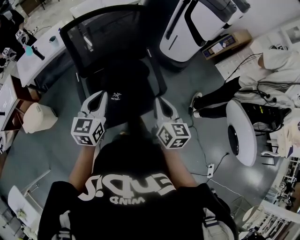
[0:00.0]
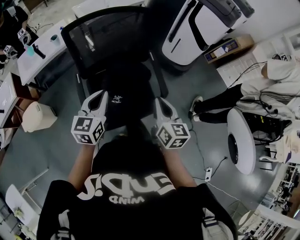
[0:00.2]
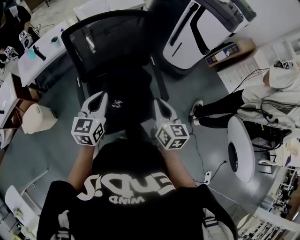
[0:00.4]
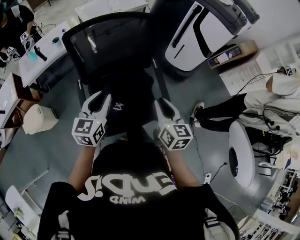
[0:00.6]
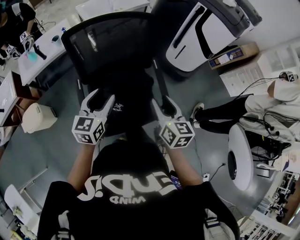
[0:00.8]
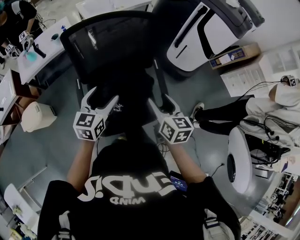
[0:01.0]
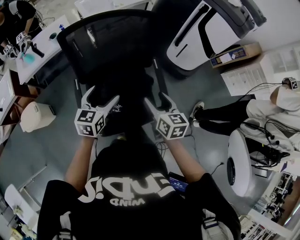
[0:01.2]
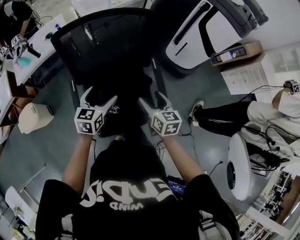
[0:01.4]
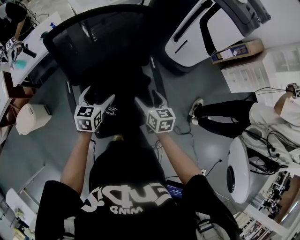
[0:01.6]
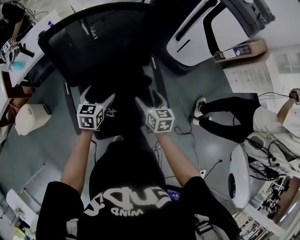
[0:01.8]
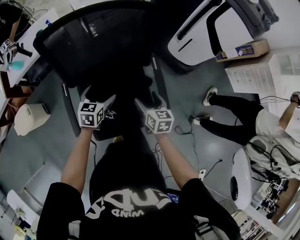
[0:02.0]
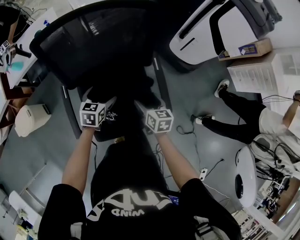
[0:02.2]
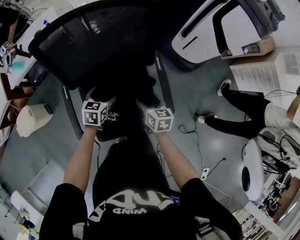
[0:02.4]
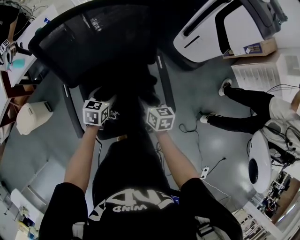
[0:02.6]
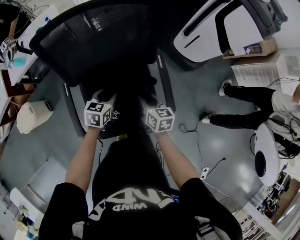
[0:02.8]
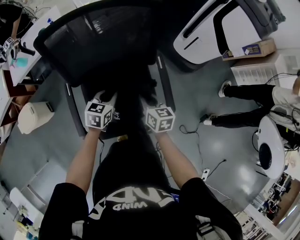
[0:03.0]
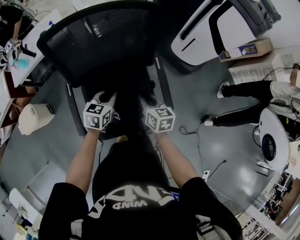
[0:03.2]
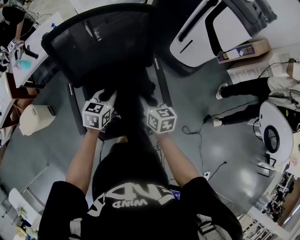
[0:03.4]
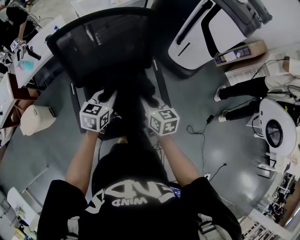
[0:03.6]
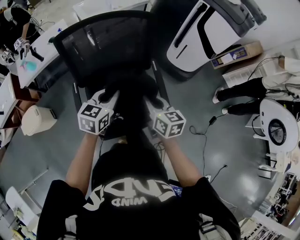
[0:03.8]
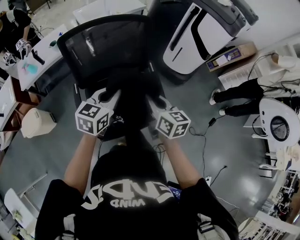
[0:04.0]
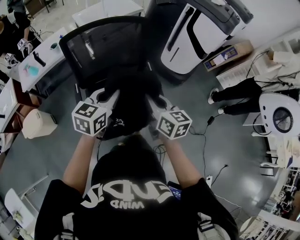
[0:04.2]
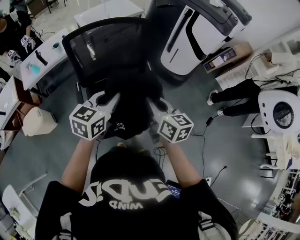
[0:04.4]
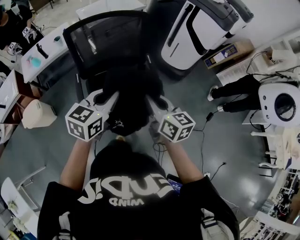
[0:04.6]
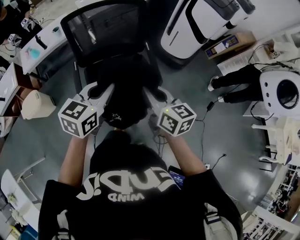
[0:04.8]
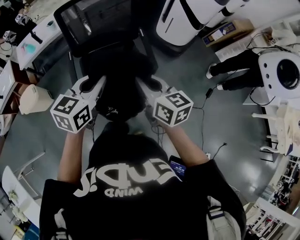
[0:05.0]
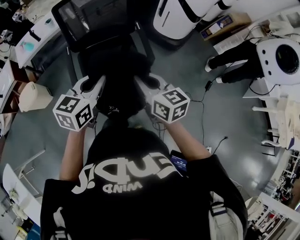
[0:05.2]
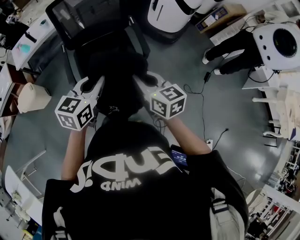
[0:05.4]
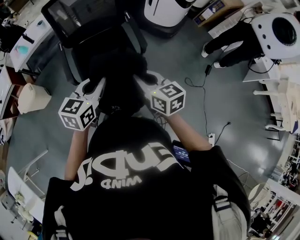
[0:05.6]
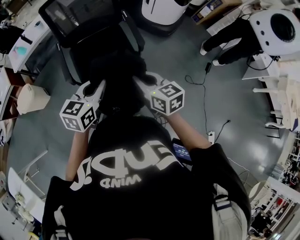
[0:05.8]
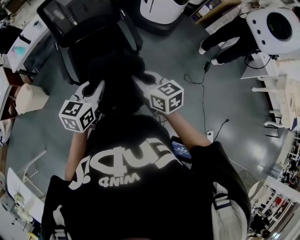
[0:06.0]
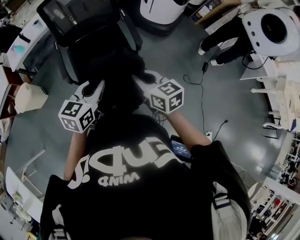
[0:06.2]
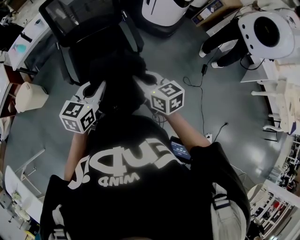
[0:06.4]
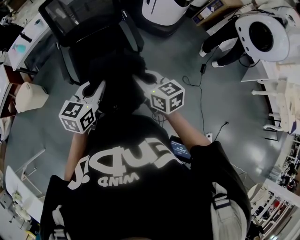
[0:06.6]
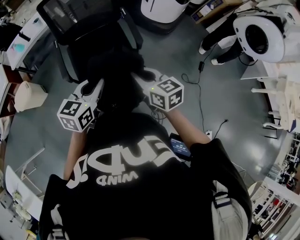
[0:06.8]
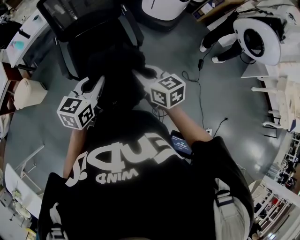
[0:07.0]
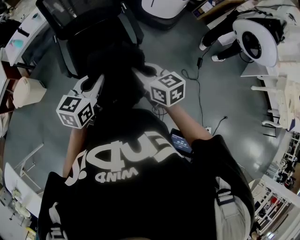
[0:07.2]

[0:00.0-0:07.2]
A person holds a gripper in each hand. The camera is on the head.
0:00.0 to 0:01.4: The grippers both shift forward and downward by roughly 20 cm. The right gripper opens up, while the left gripper opens up.
0:01.4 to 0:02.8: Both grippers travel together downward and forward, roughly 15 cm. The left gripper closes; the right gripper closes.
0:02.8 to 0:04.4: Both grippers move upward and backward, roughly 35 cm. The left gripper changes its angle by roughly 20 degrees.
0:04.4 to 0:05.8: The two grippers go some 25 cm backward.
0:05.8 to 0:07.2: The two grippers keep their place.

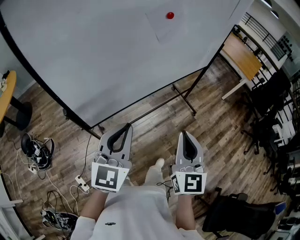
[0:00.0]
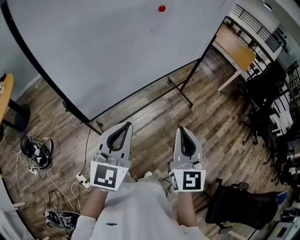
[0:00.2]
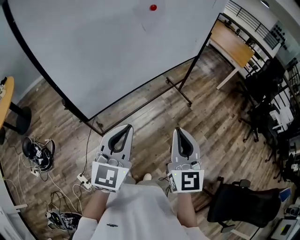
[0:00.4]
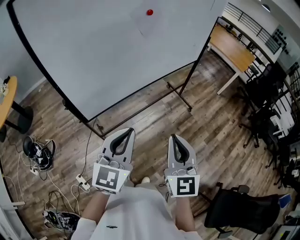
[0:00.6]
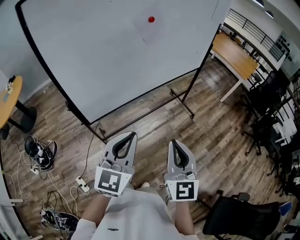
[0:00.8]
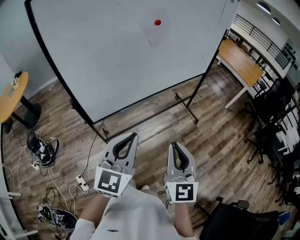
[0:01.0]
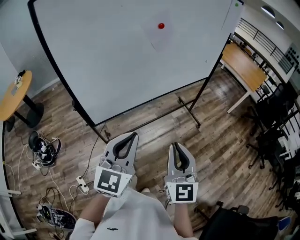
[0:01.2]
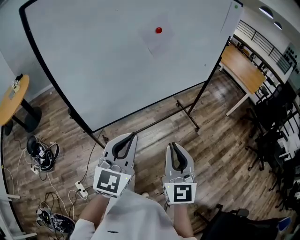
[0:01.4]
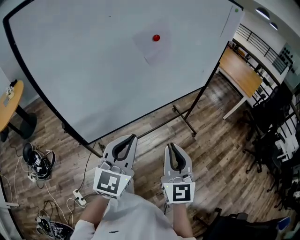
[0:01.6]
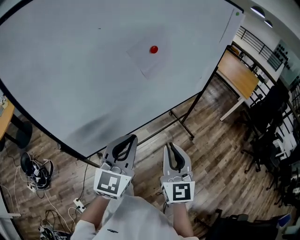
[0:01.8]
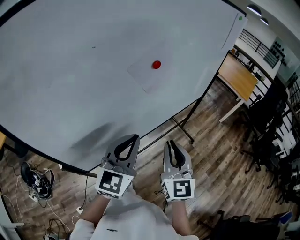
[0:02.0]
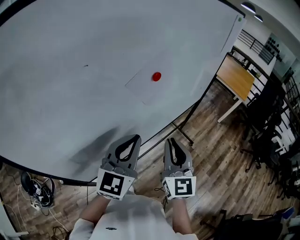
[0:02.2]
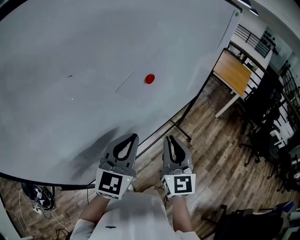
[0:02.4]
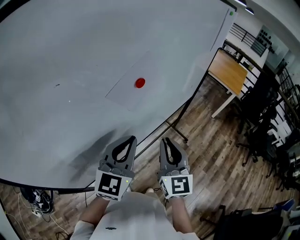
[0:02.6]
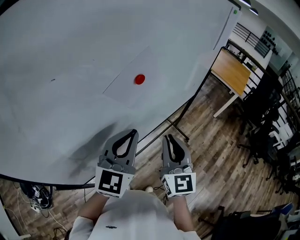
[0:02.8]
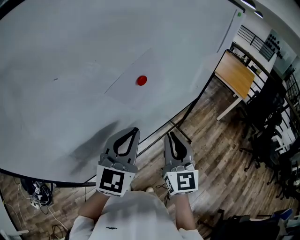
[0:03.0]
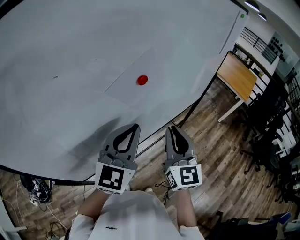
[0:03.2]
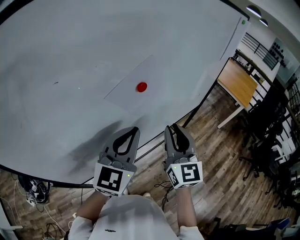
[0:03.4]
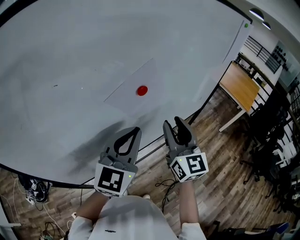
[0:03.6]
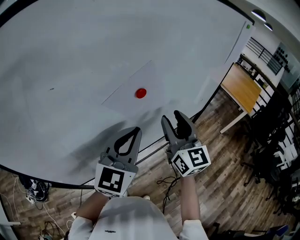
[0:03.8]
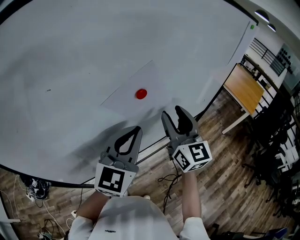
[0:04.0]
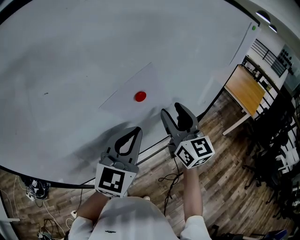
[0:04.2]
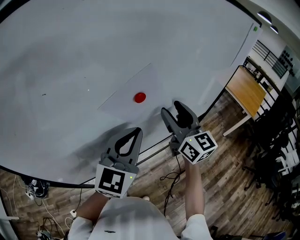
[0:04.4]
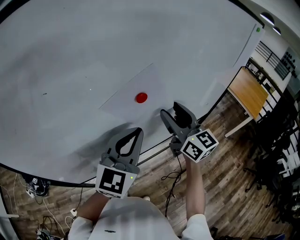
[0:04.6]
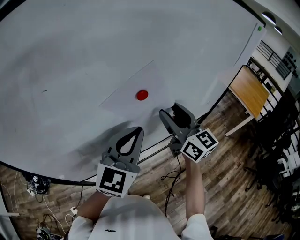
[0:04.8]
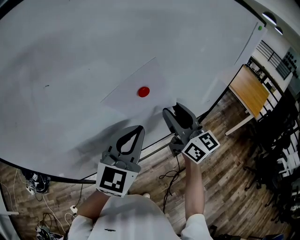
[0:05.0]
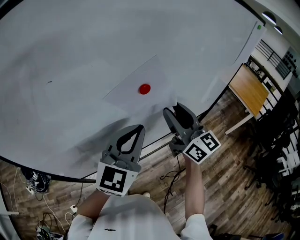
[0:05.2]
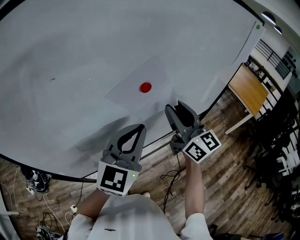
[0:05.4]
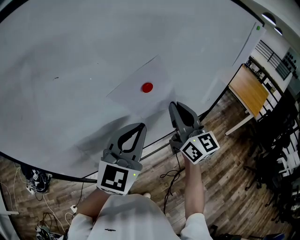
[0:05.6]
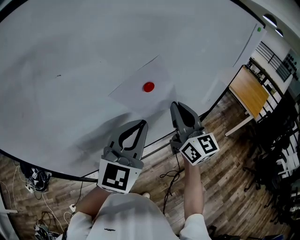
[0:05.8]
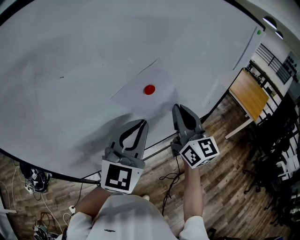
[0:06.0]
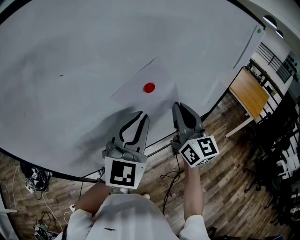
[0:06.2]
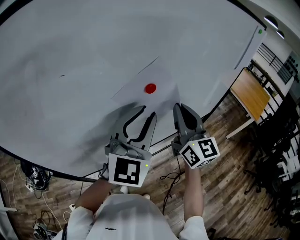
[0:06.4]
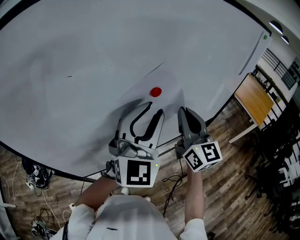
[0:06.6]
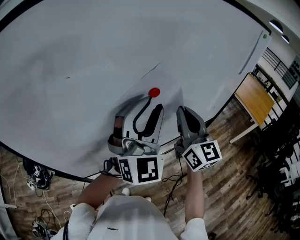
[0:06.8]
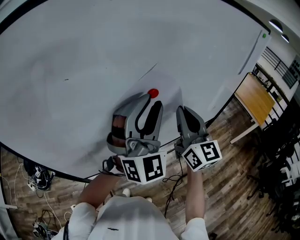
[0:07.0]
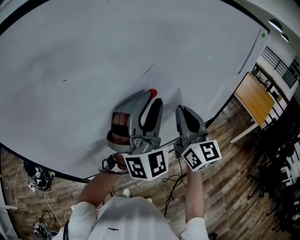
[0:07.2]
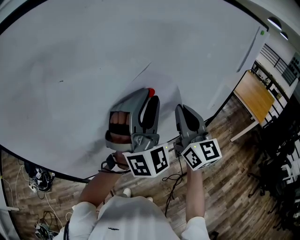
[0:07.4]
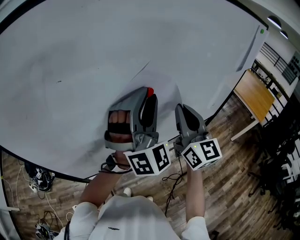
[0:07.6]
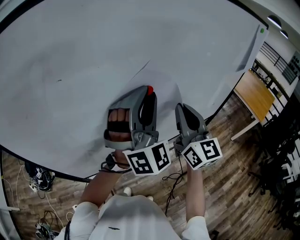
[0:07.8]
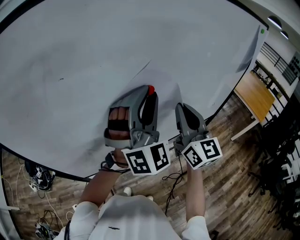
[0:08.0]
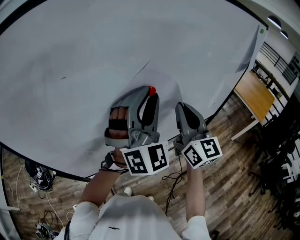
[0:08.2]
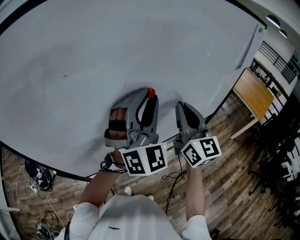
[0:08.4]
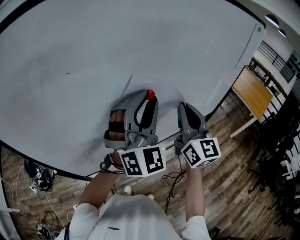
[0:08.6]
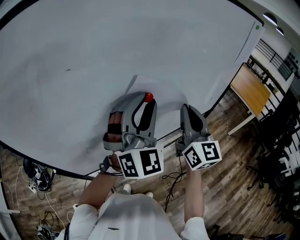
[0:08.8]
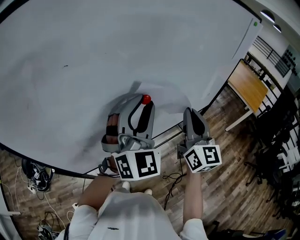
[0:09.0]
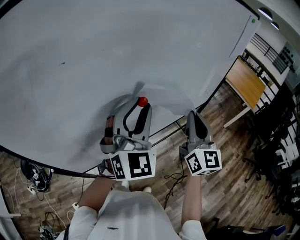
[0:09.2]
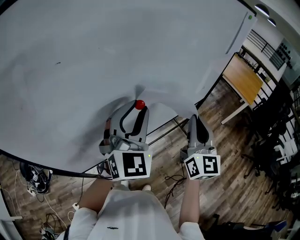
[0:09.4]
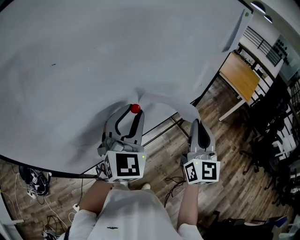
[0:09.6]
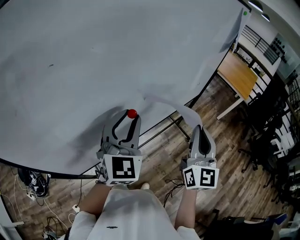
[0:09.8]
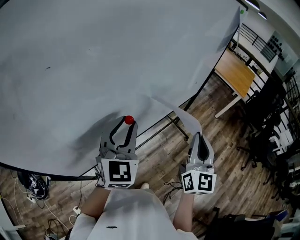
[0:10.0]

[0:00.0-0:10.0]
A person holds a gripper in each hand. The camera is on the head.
0:00.0 to 0:01.4: The left gripper moves to the right, approximately 5 cm.
0:01.4 to 0:02.8: The two grippers go some 30 cm forward.
0:02.8 to 0:04.2: The left gripper moves forward, roughly 5 cm. Meanwhile the right gripper is displaced forward and upward by approximately 15 cm, turns by about 20 degrees, and opens.
0:04.2 to 0:05.8: The right gripper closes.
0:05.8 to 0:07.2: The left gripper shifts approximately 5 cm upward, rotates around the line of its fingers by about 50 degrees, clockwise from behind, and opens.
0:07.2 to 0:08.6: The grippers make only small movements.
0:08.6 to 0:10.0: The right gripper heads backward, to the right and downward, covering about 20 cm, and turns by roughly 30 degrees. The left gripper is displaced downward by about 10 cm, and turns by about 40 degrees.

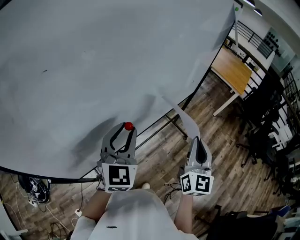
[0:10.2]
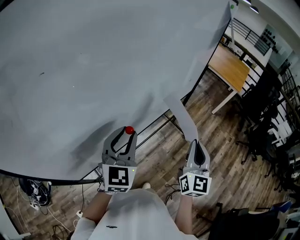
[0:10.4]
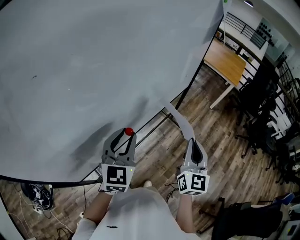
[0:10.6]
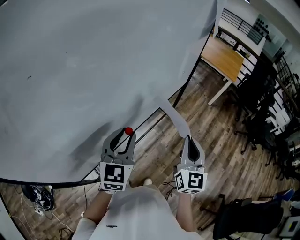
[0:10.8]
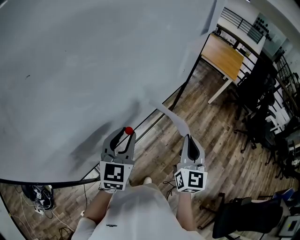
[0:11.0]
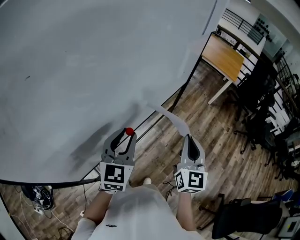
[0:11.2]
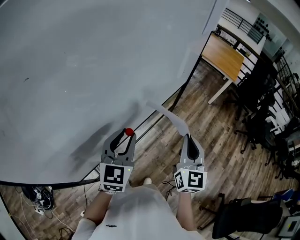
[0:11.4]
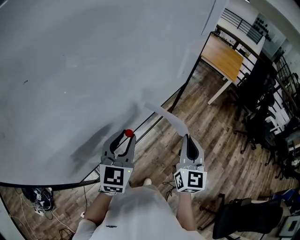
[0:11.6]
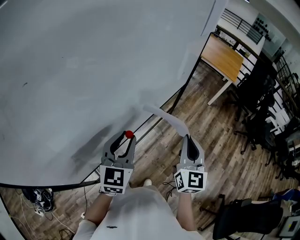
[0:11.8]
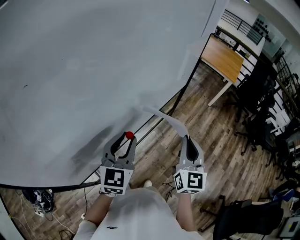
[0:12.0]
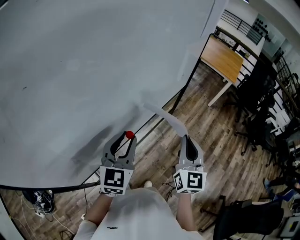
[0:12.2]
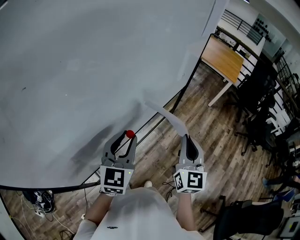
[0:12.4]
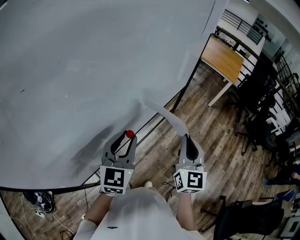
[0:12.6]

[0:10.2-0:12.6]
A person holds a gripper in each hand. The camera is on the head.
0:10.2 to 0:11.4: The left gripper moves about 5 cm.
0:11.4 to 0:12.6: The grippers make only small movements.

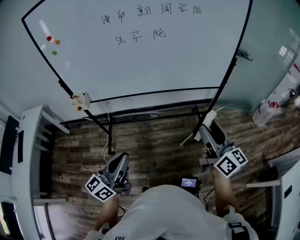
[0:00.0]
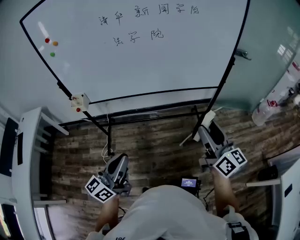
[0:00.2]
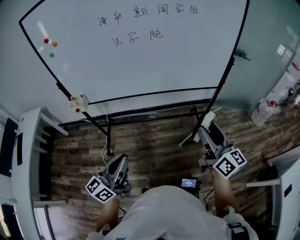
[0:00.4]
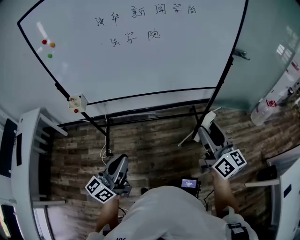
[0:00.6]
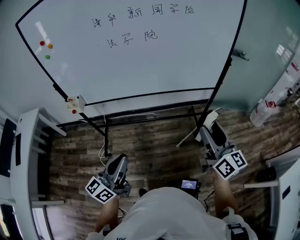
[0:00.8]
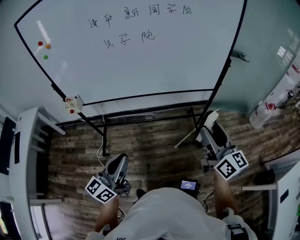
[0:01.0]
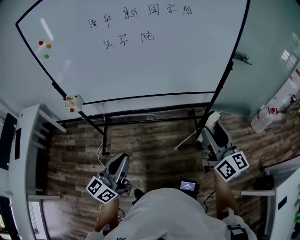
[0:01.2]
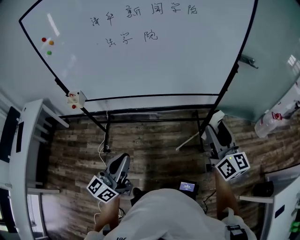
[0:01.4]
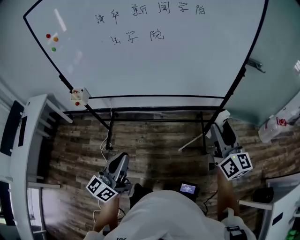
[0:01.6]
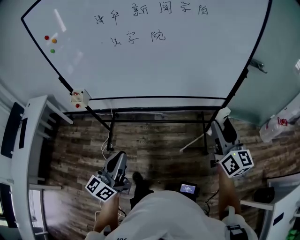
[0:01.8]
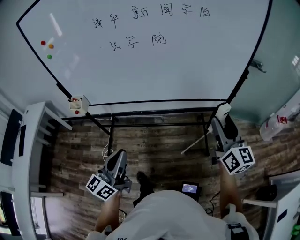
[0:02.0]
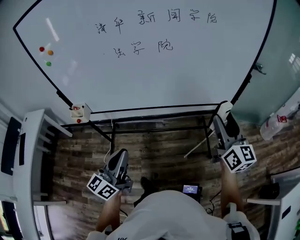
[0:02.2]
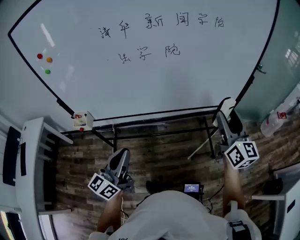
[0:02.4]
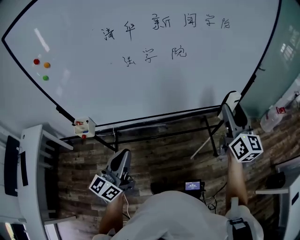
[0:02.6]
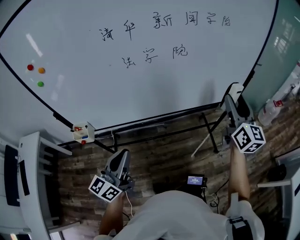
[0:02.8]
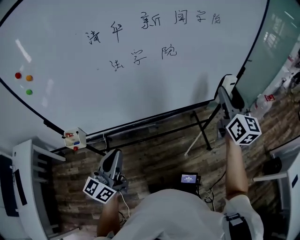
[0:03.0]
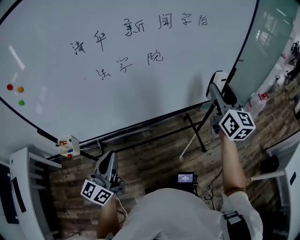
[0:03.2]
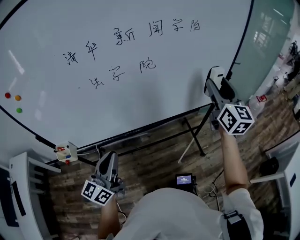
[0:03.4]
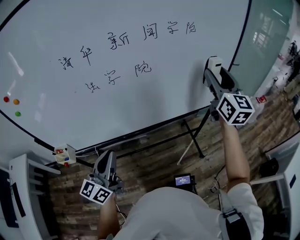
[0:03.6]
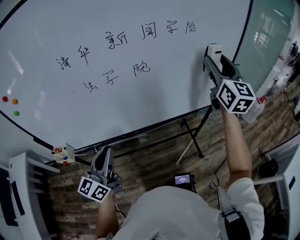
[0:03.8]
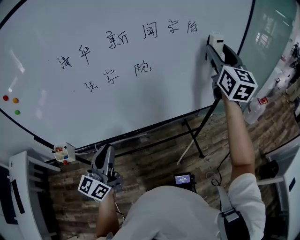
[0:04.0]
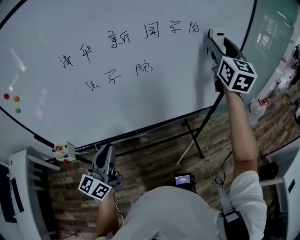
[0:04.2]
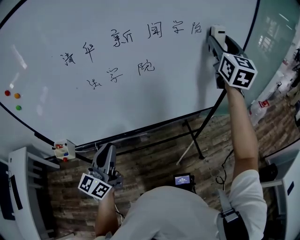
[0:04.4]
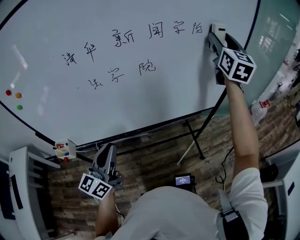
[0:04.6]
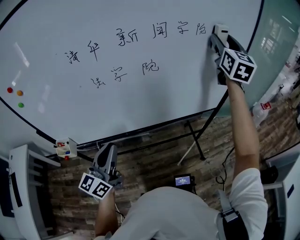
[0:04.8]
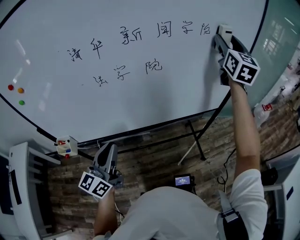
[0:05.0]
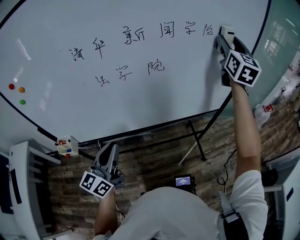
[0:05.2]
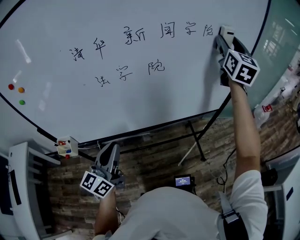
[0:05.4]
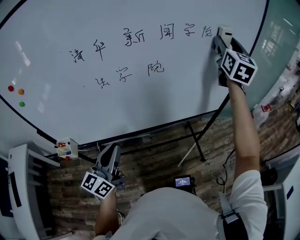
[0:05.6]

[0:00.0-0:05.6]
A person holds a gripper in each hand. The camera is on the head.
0:00.0 to 0:01.4: The right gripper heads to the right and forward, covering approximately 10 cm; the left gripper heads to the right, covering about 10 cm.
0:01.4 to 0:02.8: The right gripper goes roughly 20 cm forward and to the left, and changes its angle by roughly 20 degrees; the left gripper goes some 25 cm to the left and forward.
0:02.8 to 0:04.2: The left gripper is displaced forward by about 10 cm. The right gripper shifts about 25 cm forward and upward.
0:04.2 to 0:05.6: The grippers move only a little.
